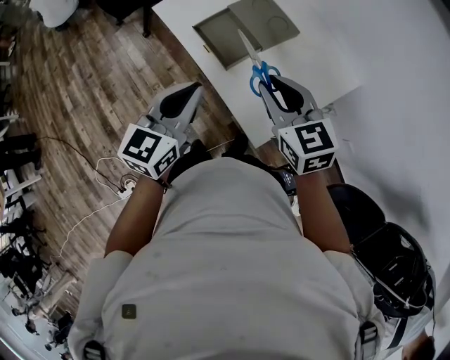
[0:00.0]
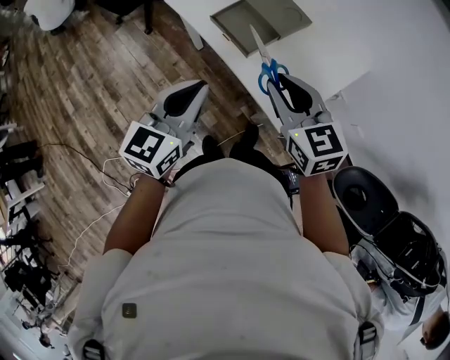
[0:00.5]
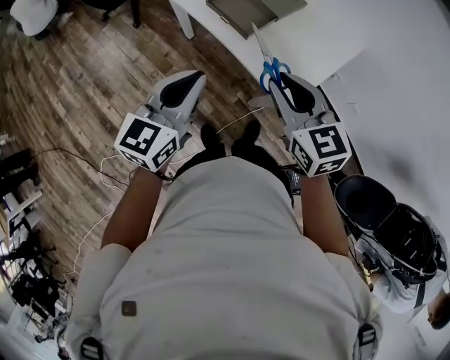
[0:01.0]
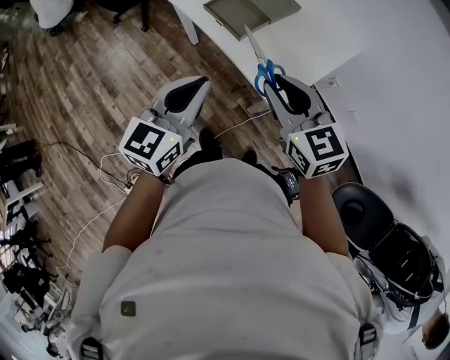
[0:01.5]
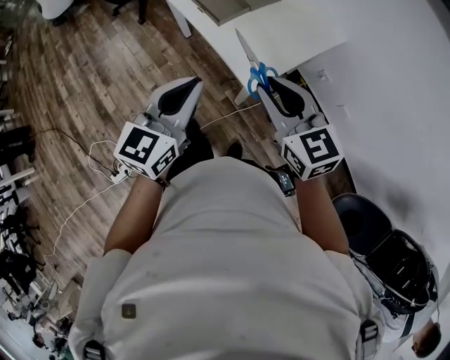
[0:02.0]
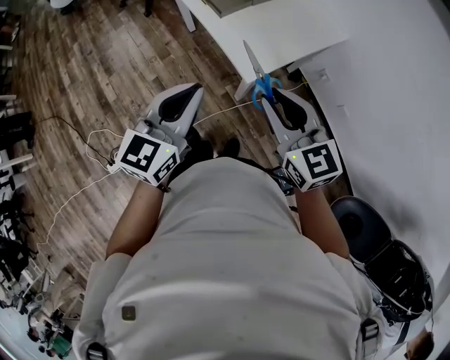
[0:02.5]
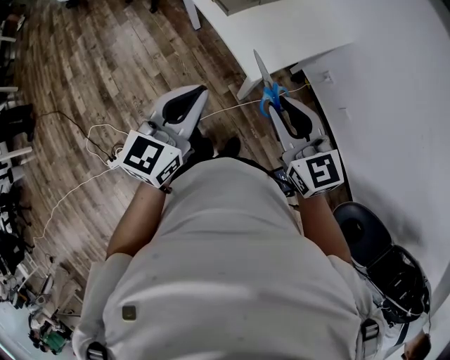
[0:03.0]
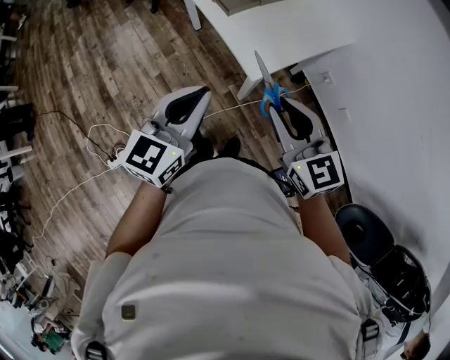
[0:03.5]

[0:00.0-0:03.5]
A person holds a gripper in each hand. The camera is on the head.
0:00.0 to 0:02.0: The grippers both shift backward by approximately 20 cm.
0:02.0 to 0:03.5: Both grippers travel together backward, about 10 cm.

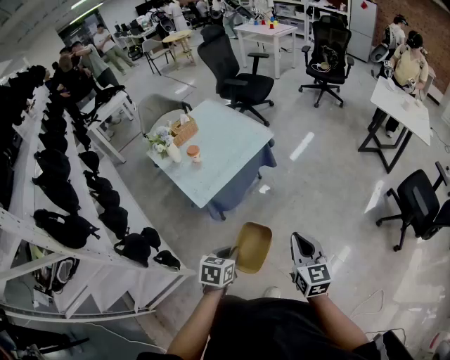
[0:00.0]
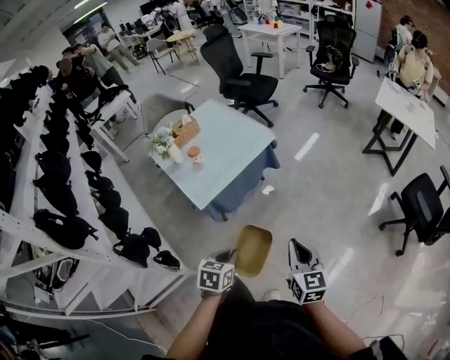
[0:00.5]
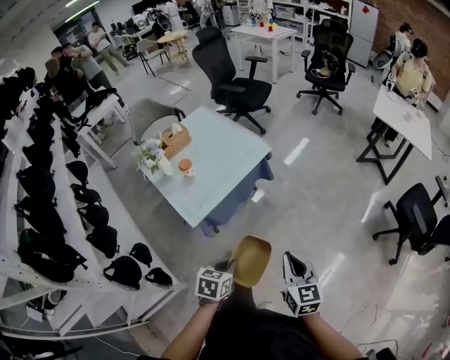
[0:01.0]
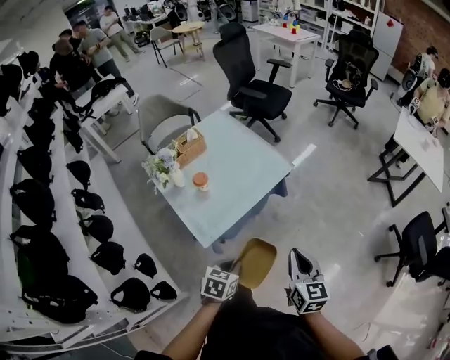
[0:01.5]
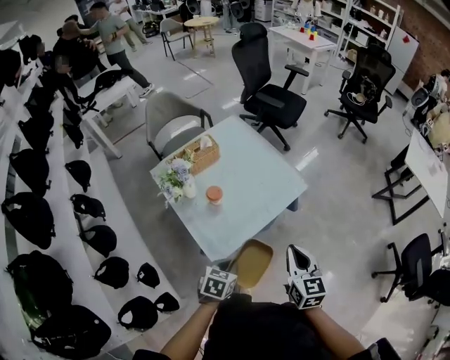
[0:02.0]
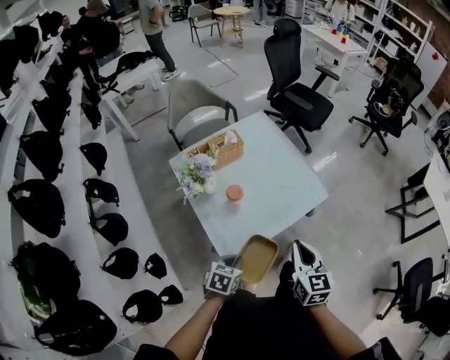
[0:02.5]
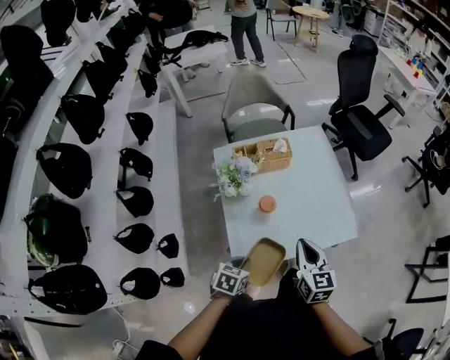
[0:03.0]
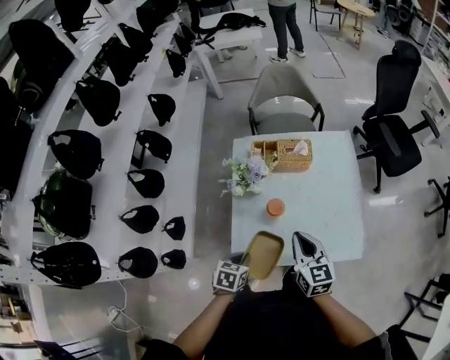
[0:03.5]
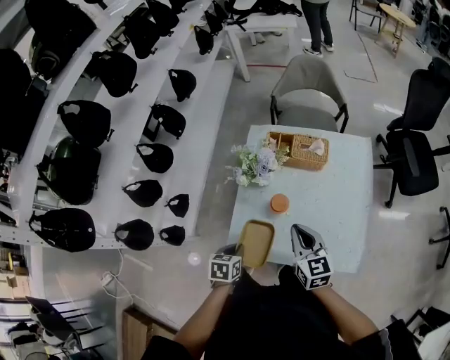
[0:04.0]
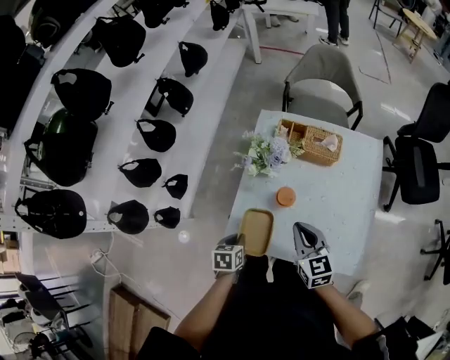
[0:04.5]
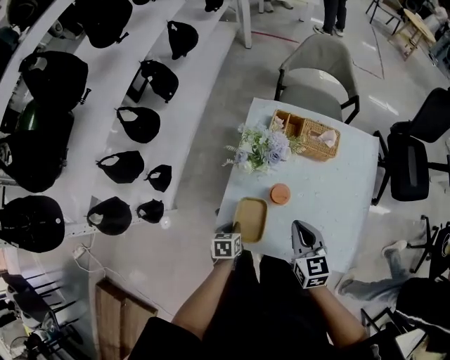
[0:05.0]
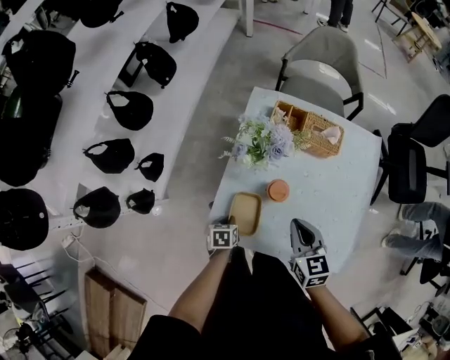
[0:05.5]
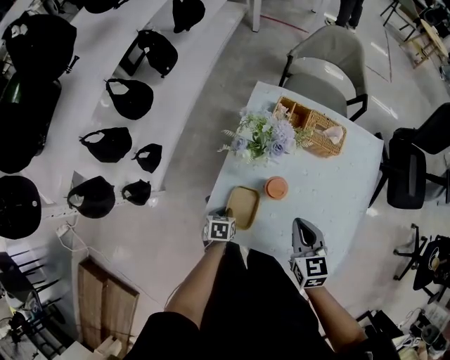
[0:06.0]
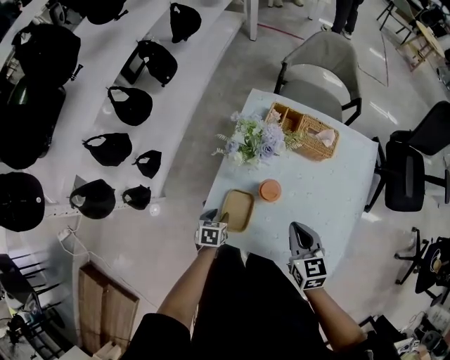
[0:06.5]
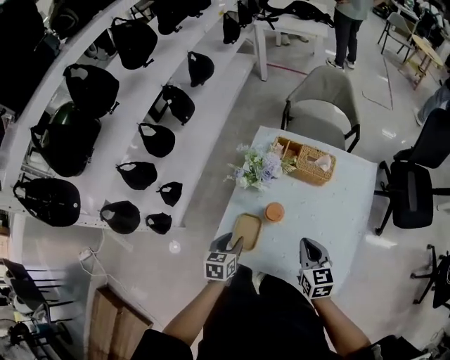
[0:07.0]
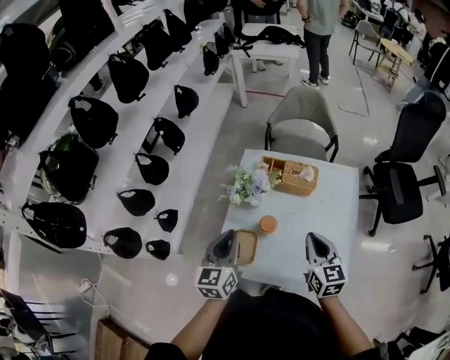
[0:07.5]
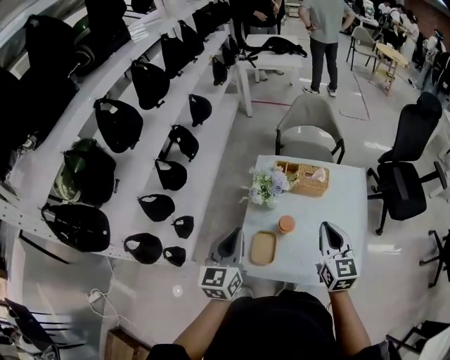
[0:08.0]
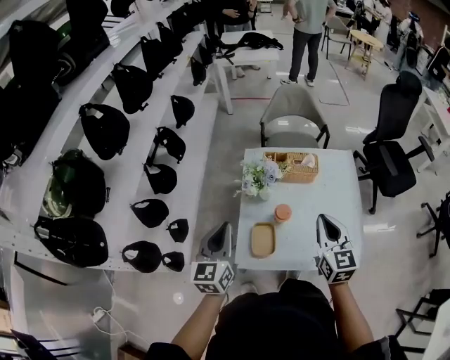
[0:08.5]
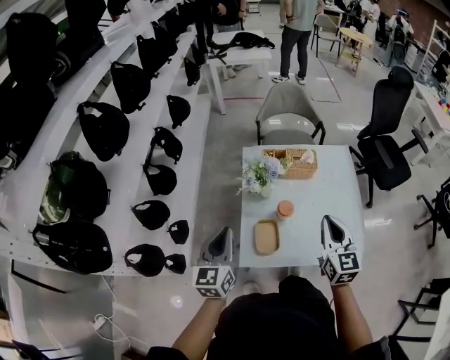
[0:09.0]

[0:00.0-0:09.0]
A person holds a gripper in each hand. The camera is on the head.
0:00.0 to 0:02.0: The two grippers go approximately 35 cm forward and to the left.
0:02.0 to 0:04.5: The left gripper moves about 20 cm, and rolls counterclockwise, seen from behind, by some 60 degrees. Meanwhile the right gripper changes place by about 35 cm, and rotates about 70 degrees.
0:04.5 to 0:07.0: The left gripper reaches about 15 cm downward, then returns, and opens up. The right gripper heads to the right, covering roughly 10 cm.
0:07.0 to 0:09.0: The left gripper goes roughly 25 cm upward and to the left, tips its fingers upward by some 30 degrees, and closes up. Meanwhile the right gripper moves upward, approximately 15 cm, and rotates some 30 degrees.

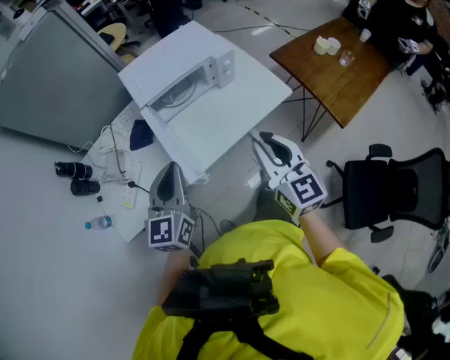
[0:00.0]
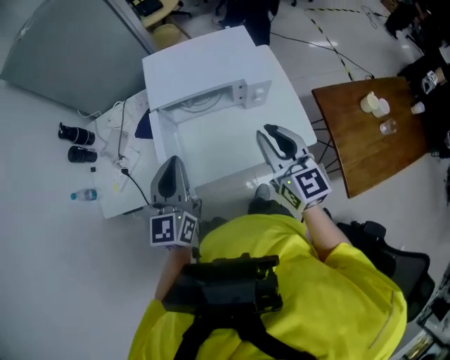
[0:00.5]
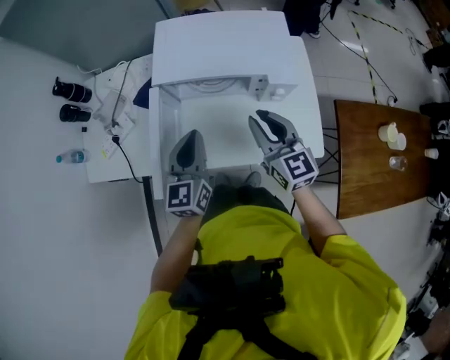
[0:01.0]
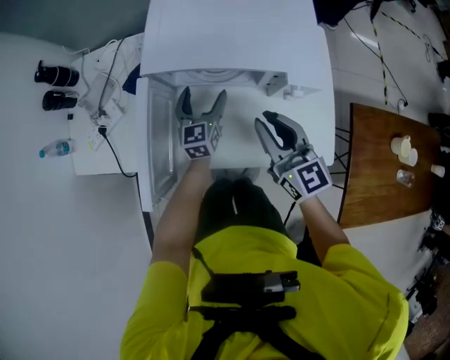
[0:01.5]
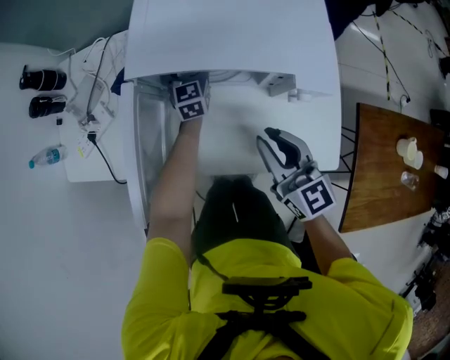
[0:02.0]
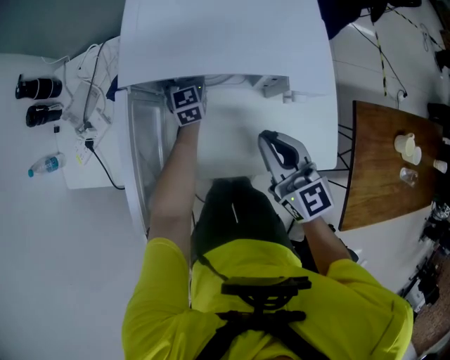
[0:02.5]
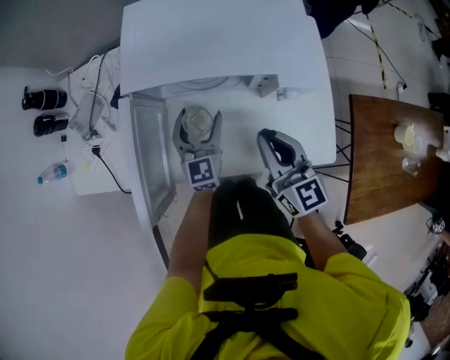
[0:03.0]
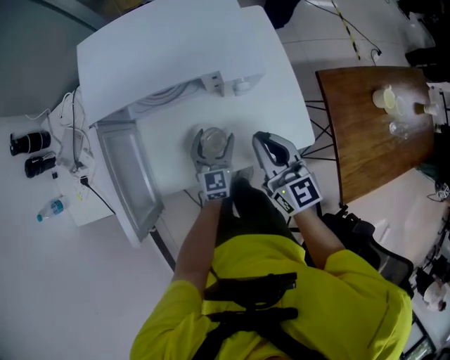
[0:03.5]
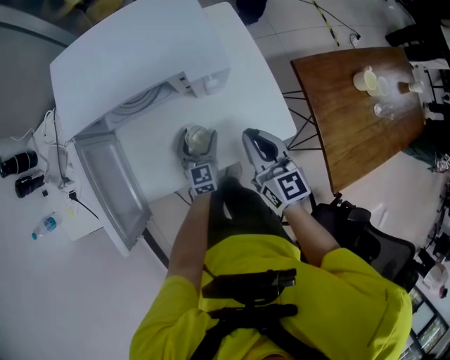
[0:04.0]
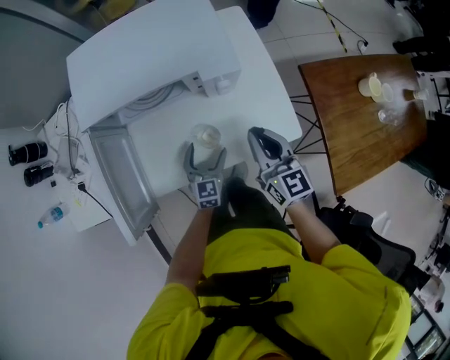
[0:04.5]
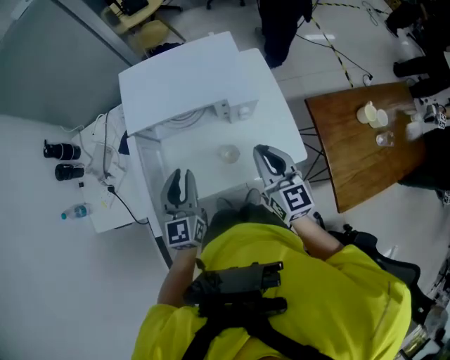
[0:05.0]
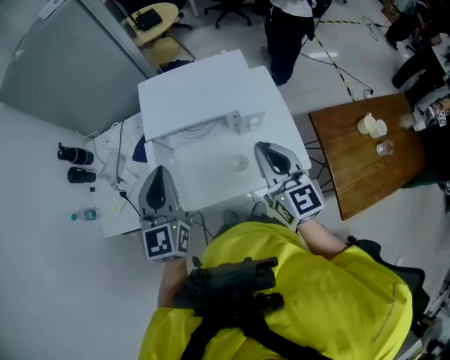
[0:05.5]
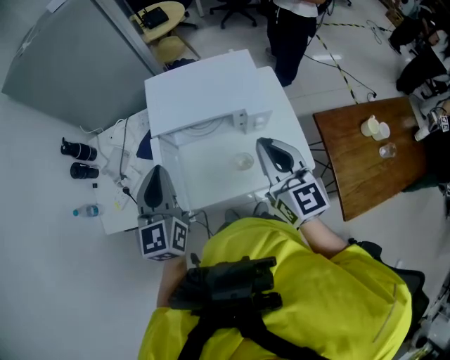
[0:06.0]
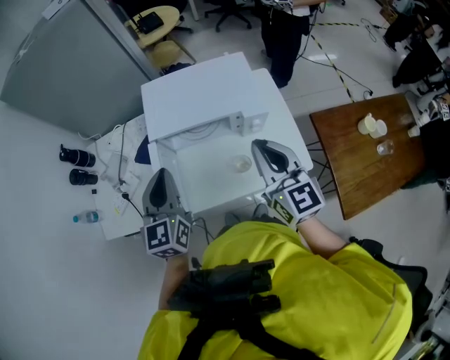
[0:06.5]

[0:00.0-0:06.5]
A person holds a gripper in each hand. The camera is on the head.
0:00.0 to 0:02.0: The left gripper ends up roughly 60 cm from where it was, swivels roughly 40 degrees, and opens up, while the right gripper changes place by about 35 cm, and rotates about 40 degrees.
0:02.0 to 0:04.5: The right gripper ends up about 15 cm from where it was, and rotates roughly 20 degrees, while the left gripper shifts by approximately 35 cm, and swivels some 30 degrees.
0:04.5 to 0:06.5: The left gripper shifts roughly 40 cm upward and to the left, changes its angle by approximately 20 degrees, and closes. The right gripper goes approximately 25 cm upward and to the left.

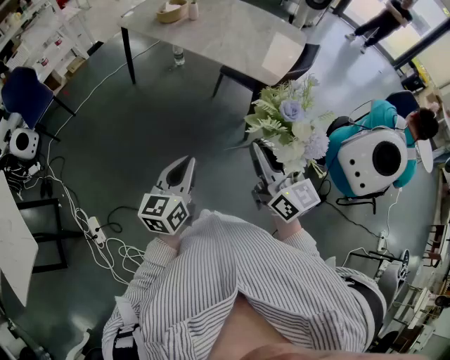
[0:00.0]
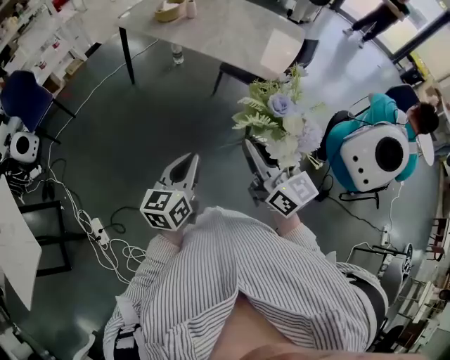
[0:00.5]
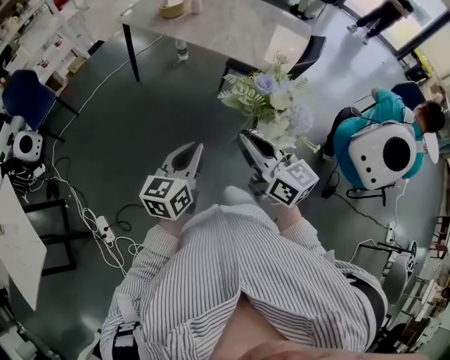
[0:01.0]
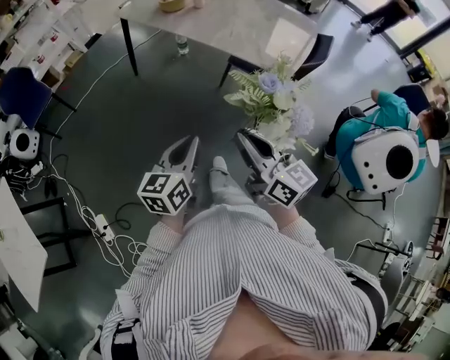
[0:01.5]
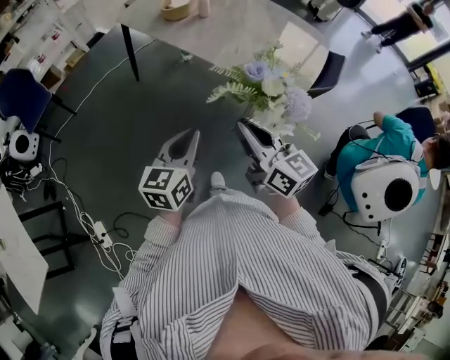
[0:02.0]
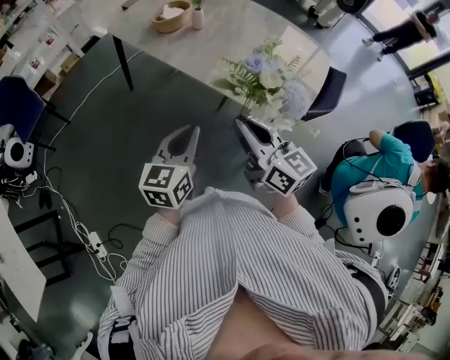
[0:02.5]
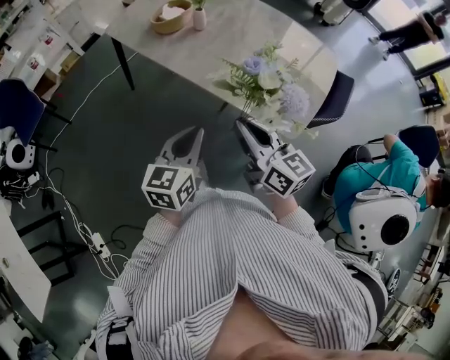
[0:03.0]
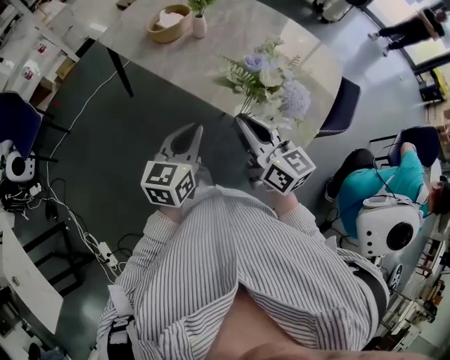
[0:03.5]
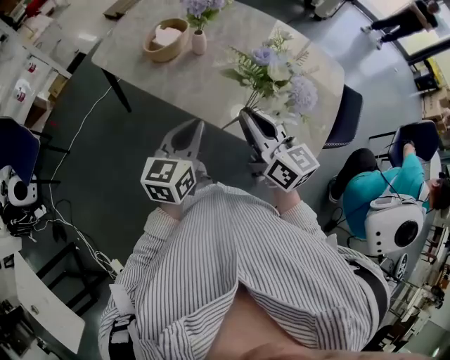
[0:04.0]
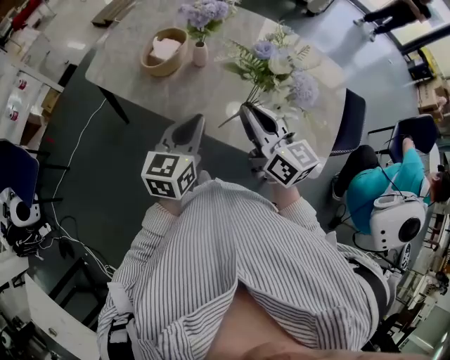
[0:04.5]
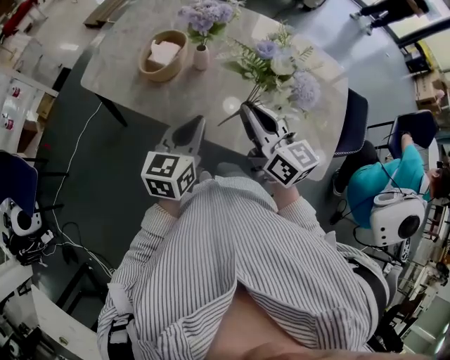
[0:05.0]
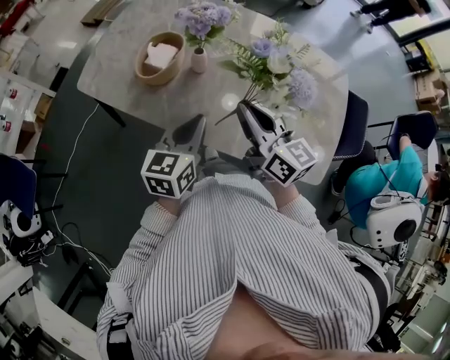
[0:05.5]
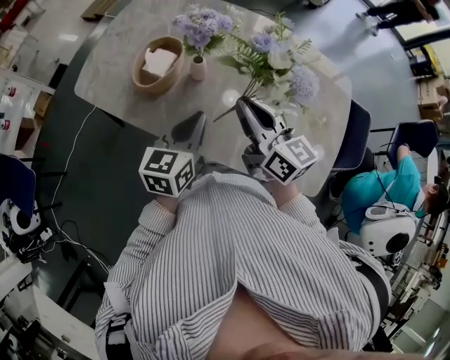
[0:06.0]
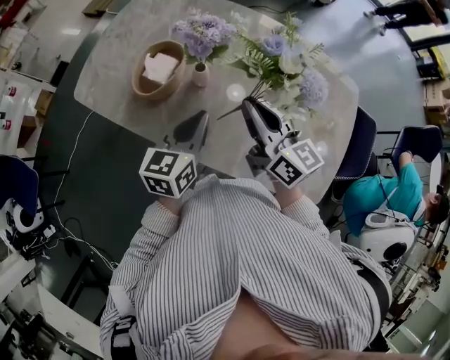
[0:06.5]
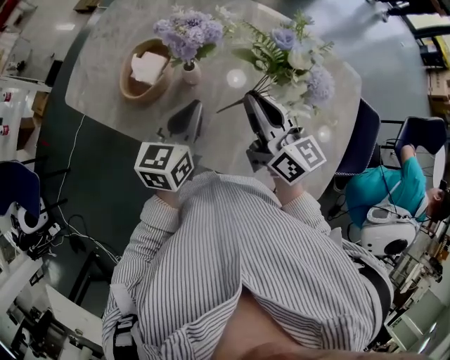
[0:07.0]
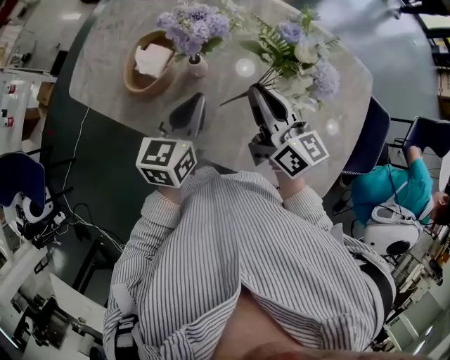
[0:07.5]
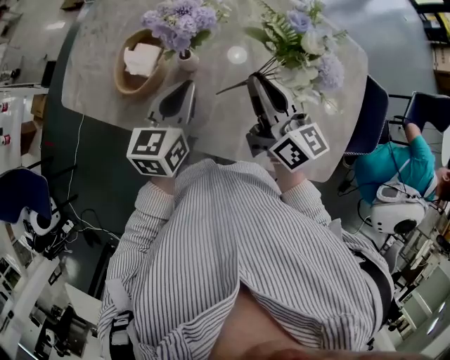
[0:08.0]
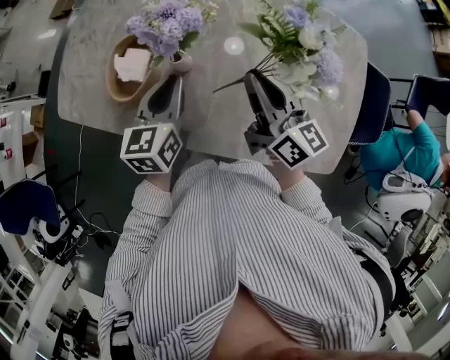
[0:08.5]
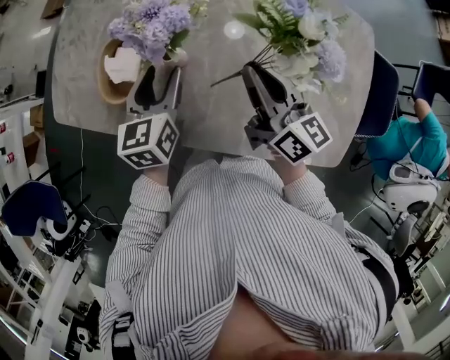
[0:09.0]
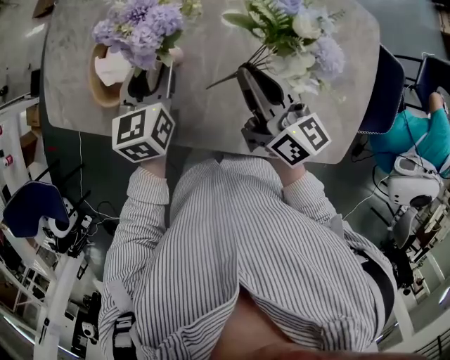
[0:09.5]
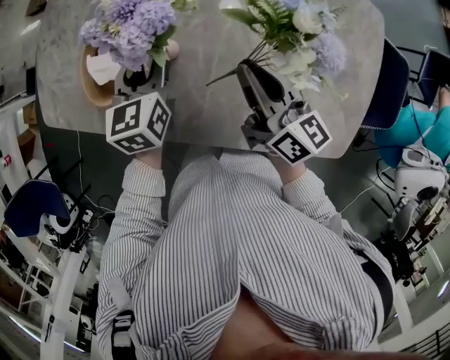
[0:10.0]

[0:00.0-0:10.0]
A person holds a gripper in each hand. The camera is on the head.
0:00.0 to 0:02.0: The two grippers go roughly 20 cm forward.
0:02.0 to 0:04.0: The grippers both shift forward by about 35 cm.
0:04.0 to 0:06.0: The two grippers go approximately 20 cm forward.
0:06.0 to 0:08.0: The two grippers go approximately 10 cm forward.
0:08.0 to 0:10.0: The right gripper shifts about 5 cm downward, while the left gripper is displaced forward and downward by approximately 10 cm, and opens.
